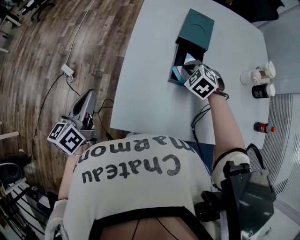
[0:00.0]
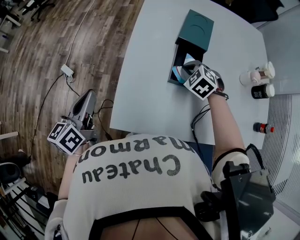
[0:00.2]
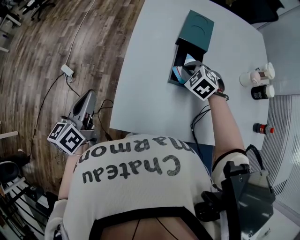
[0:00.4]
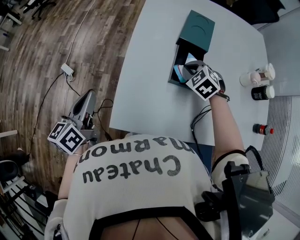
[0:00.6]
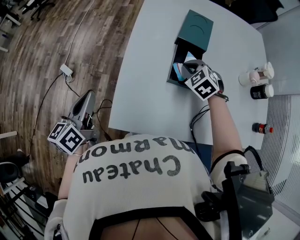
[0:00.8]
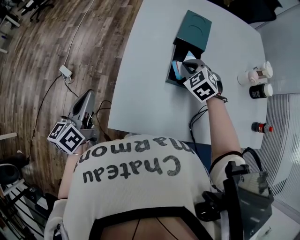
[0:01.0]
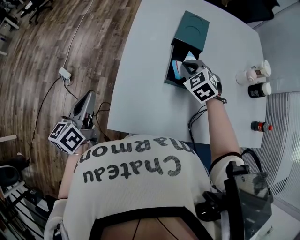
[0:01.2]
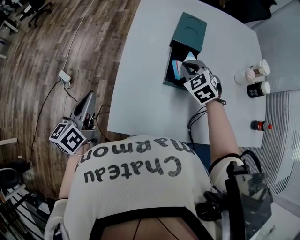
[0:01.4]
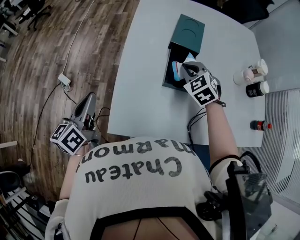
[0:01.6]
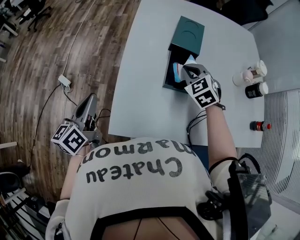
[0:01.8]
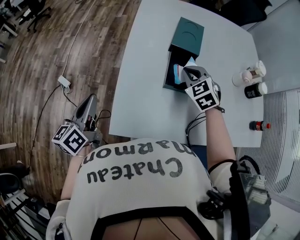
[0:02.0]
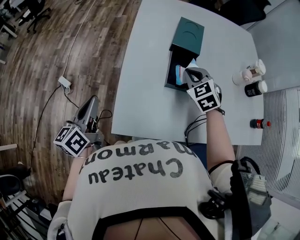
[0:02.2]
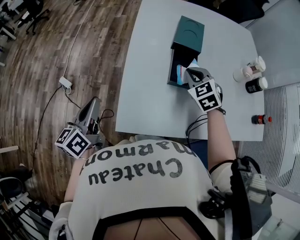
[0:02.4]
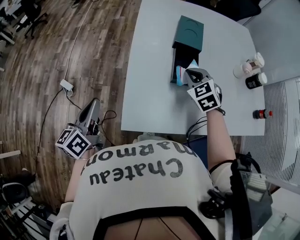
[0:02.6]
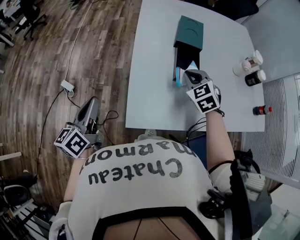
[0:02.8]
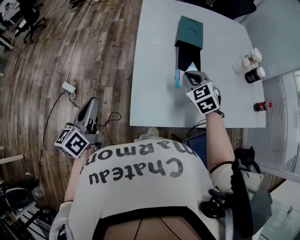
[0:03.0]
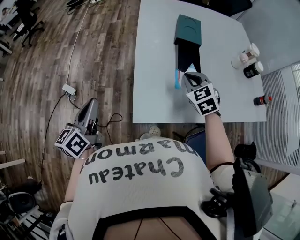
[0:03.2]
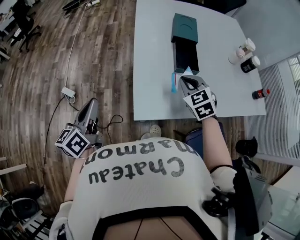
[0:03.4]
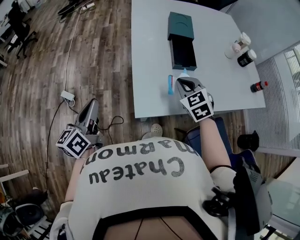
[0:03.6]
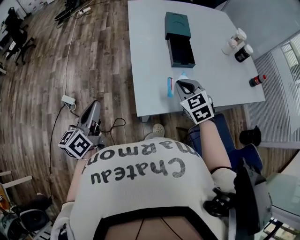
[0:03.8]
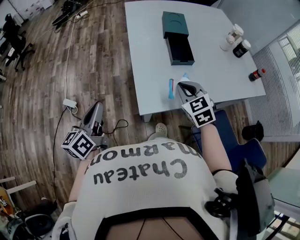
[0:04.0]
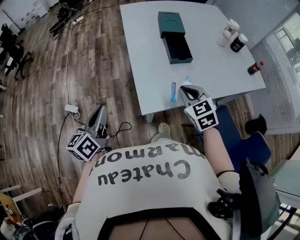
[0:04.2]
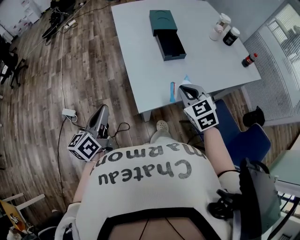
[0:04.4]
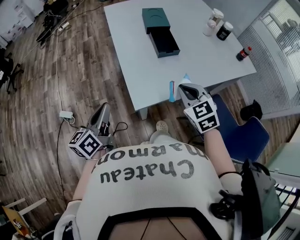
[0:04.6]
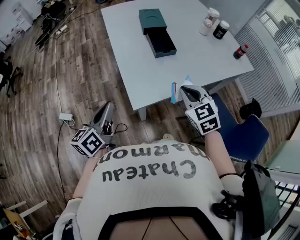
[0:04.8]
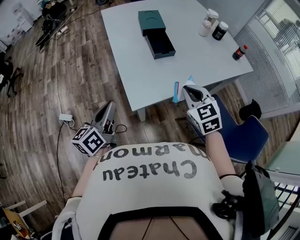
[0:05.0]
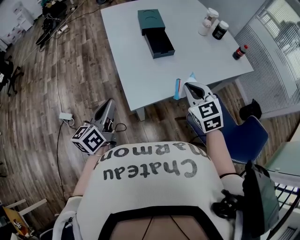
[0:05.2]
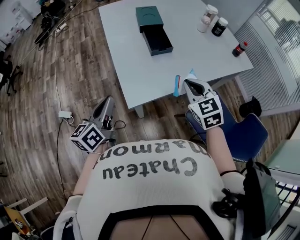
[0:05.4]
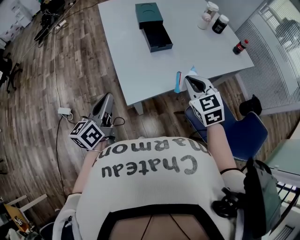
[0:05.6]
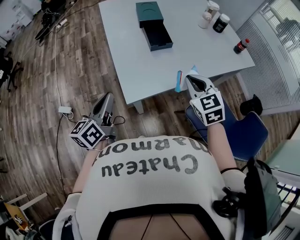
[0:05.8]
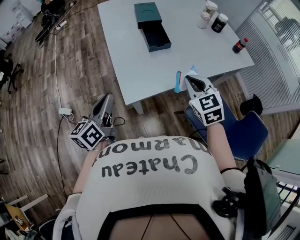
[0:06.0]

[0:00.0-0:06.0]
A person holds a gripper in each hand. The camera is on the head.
0.0 to 1.6 s: The right gripper travels upward by roughly 5 cm.
1.6 to 3.0 s: The right gripper goes approximately 10 cm backward and to the left; the left gripper travels to the left by some 10 cm.
3.0 to 4.4 s: The left gripper is displaced backward by some 5 cm, while the right gripper is displaced backward by some 20 cm, and rotates about 20 degrees.
4.4 to 6.0 s: Both grippers travel together to the right, roughly 10 cm.

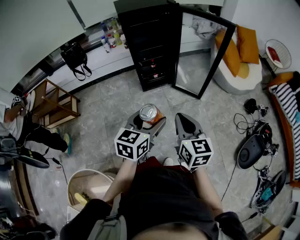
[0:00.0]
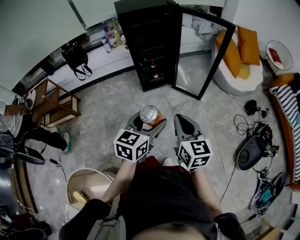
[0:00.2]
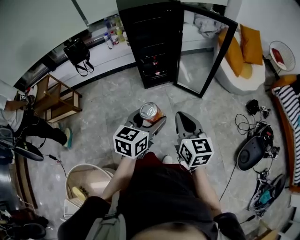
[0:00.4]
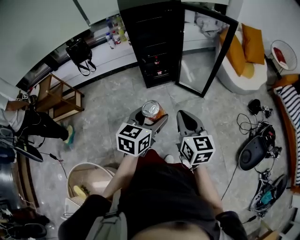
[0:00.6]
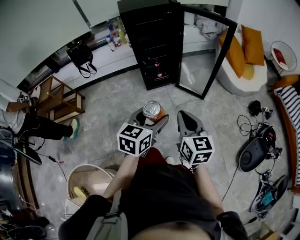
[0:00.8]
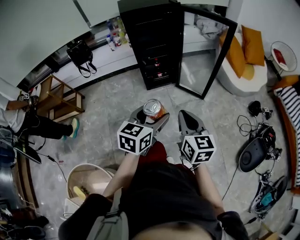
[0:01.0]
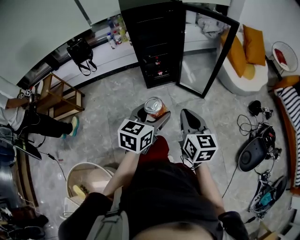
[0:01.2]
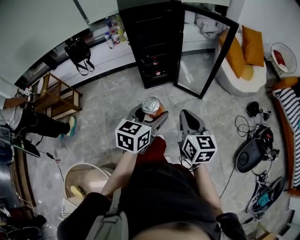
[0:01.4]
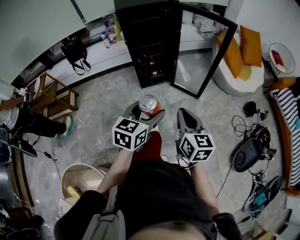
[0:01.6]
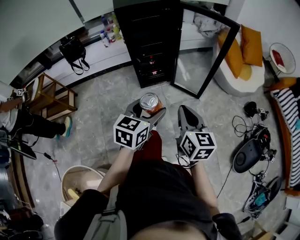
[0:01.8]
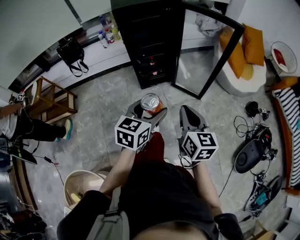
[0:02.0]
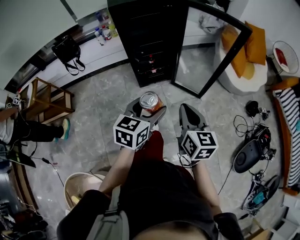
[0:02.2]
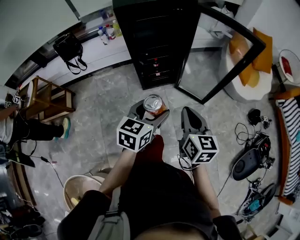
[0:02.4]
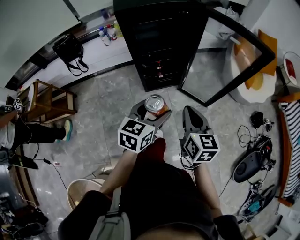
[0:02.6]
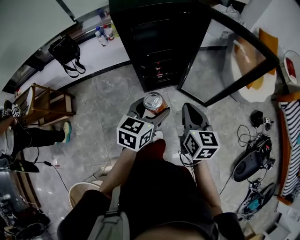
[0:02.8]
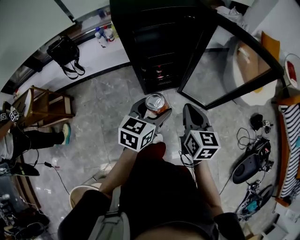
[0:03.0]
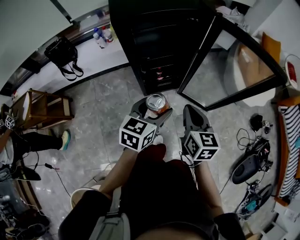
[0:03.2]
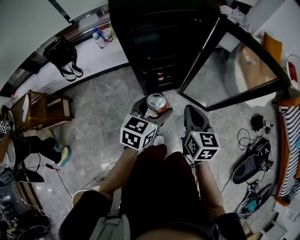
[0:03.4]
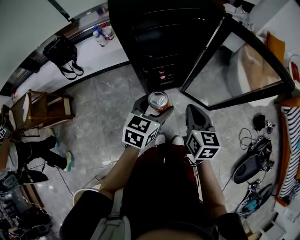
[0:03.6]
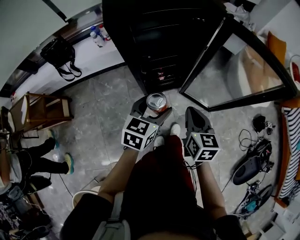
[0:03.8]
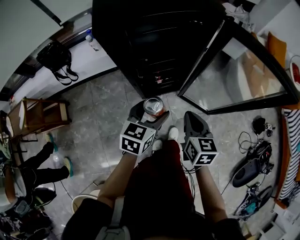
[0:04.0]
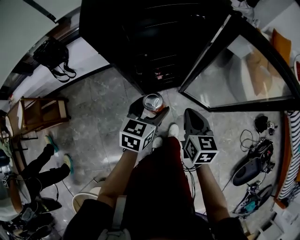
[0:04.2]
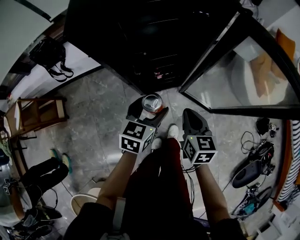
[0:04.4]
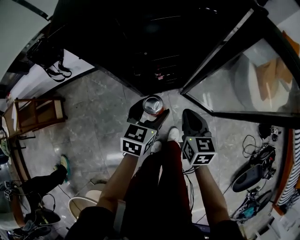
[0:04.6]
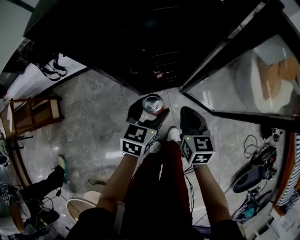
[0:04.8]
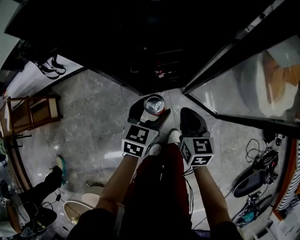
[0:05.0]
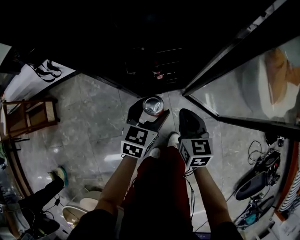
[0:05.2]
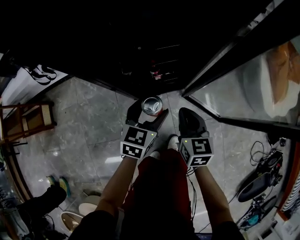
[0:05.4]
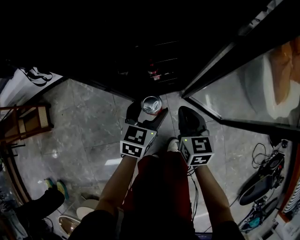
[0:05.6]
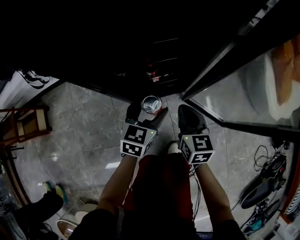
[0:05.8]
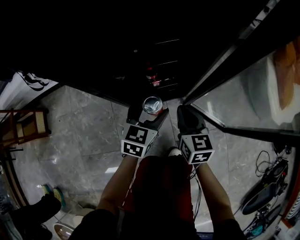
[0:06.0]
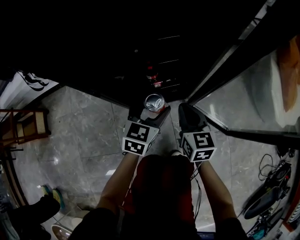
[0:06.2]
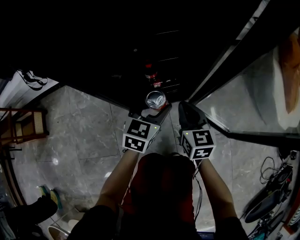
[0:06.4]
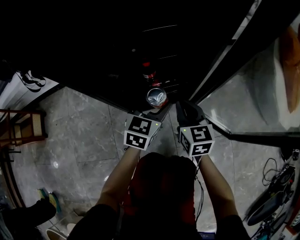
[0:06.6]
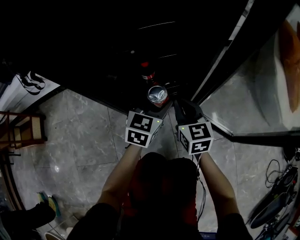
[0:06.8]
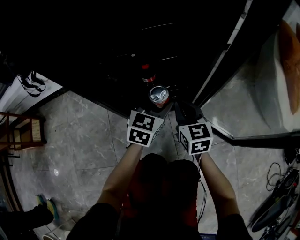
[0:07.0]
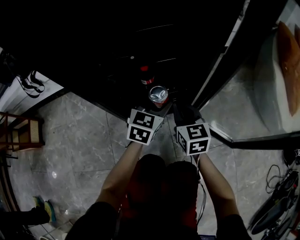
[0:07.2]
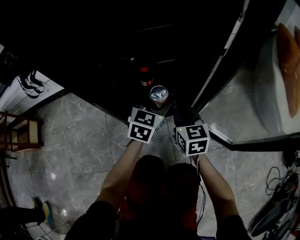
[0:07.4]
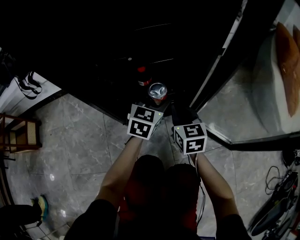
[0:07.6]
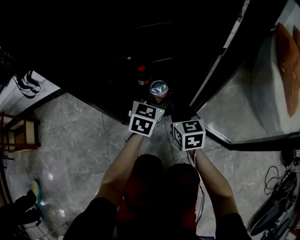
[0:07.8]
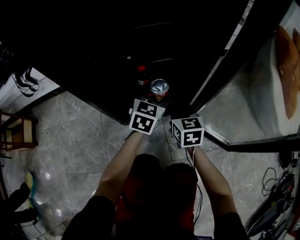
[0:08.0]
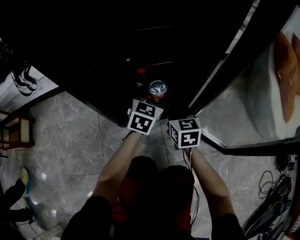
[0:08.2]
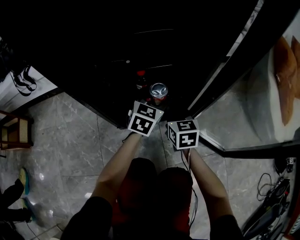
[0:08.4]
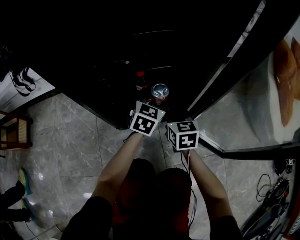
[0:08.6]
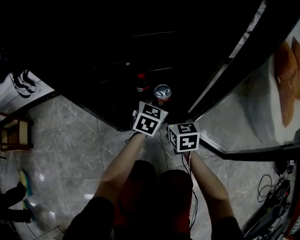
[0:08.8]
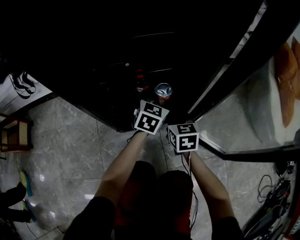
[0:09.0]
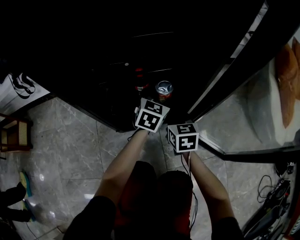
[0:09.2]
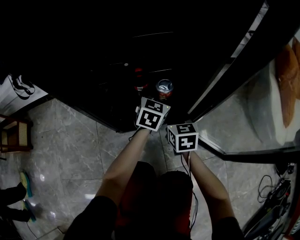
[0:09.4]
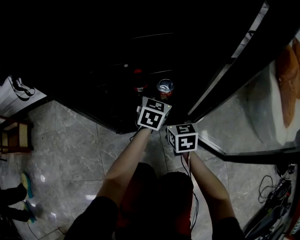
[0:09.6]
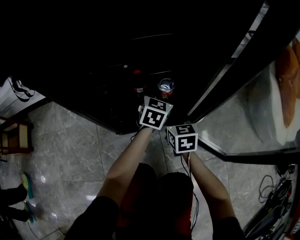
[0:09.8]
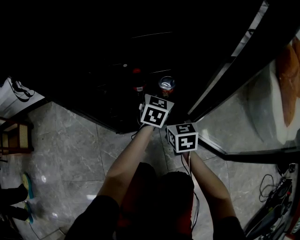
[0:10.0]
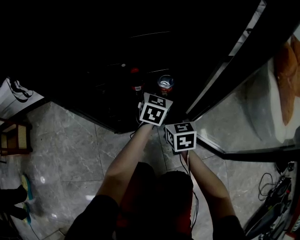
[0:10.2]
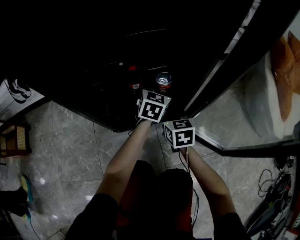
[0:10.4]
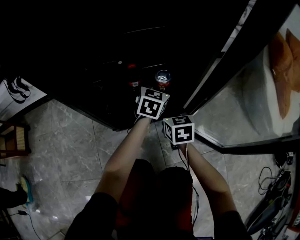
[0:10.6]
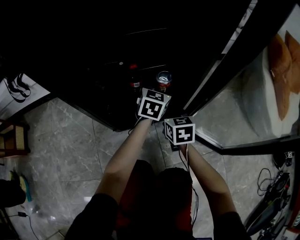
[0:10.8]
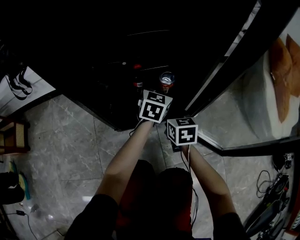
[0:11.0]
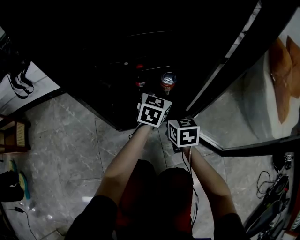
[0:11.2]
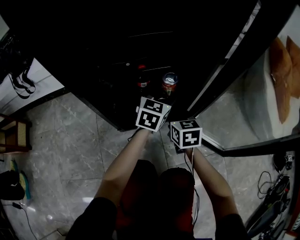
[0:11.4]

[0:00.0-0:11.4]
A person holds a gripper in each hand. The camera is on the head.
0.0 to 1.4 s: The right gripper ends up roughly 5 cm from where it was.
1.4 to 2.8 s: Both grippers move forward, approximately 30 cm.
2.8 to 4.2 s: Both grippers move forward and downward, roughly 20 cm.
4.2 to 5.6 s: The two grippers go approximately 25 cm downward.
5.6 to 7.2 s: Both grippers move downward and forward, approximately 15 cm.
7.2 to 8.6 s: The right gripper moves approximately 5 cm; the left gripper is displaced forward by some 5 cm.
8.6 to 10.0 s: The left gripper moves forward, some 5 cm.
10.0 to 11.4 s: The left gripper changes place by approximately 5 cm.

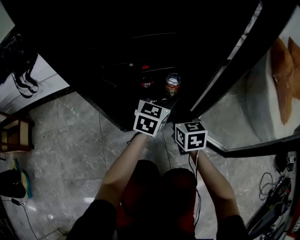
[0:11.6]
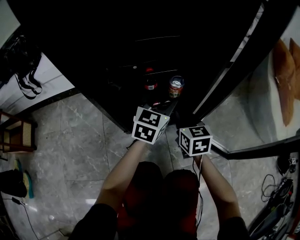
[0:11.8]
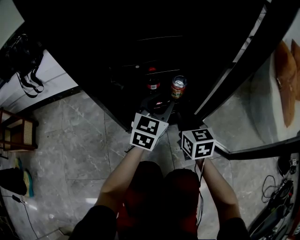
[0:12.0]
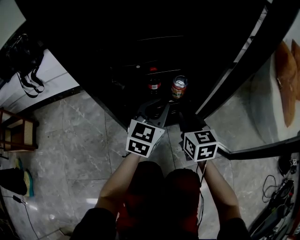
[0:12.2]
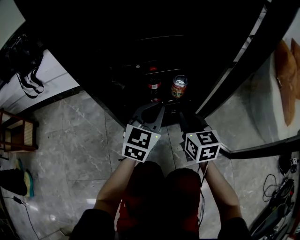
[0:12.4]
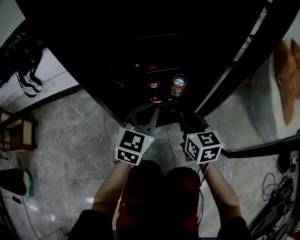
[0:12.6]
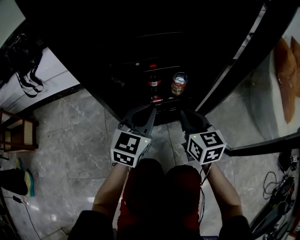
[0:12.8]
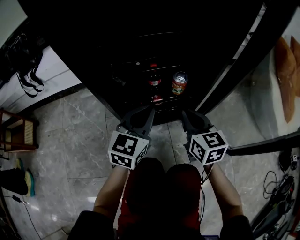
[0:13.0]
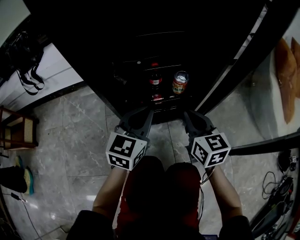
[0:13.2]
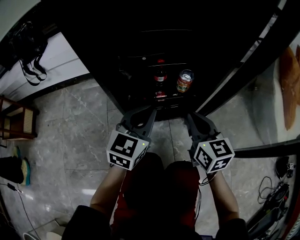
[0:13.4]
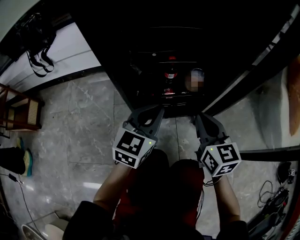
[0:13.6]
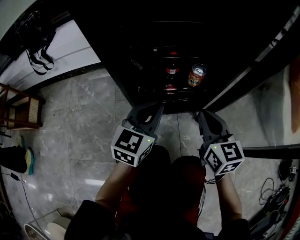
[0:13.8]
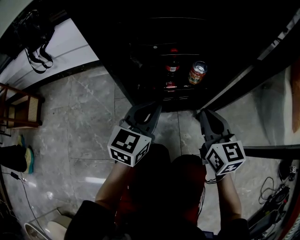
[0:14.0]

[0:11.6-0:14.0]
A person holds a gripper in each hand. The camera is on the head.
11.6 to 12.8 s: The left gripper goes about 10 cm backward and to the left, and closes its fingers, while the right gripper is displaced upward by approximately 5 cm.
12.8 to 14.0 s: The grippers stay close to where they were, moving slightly.

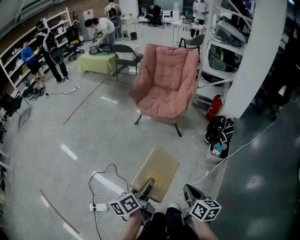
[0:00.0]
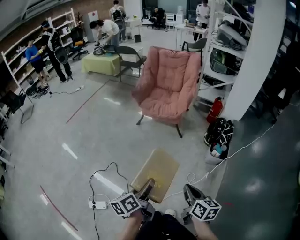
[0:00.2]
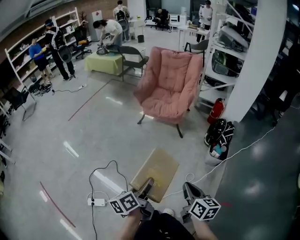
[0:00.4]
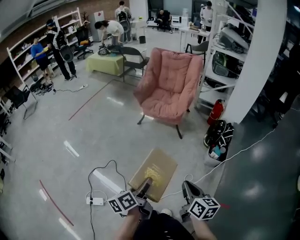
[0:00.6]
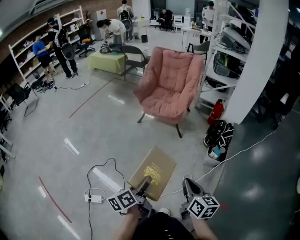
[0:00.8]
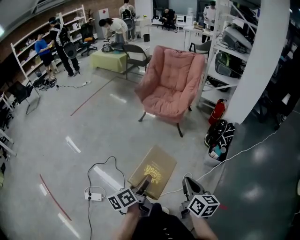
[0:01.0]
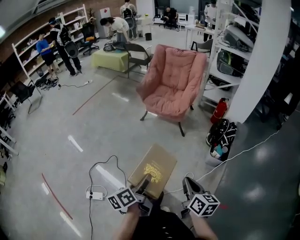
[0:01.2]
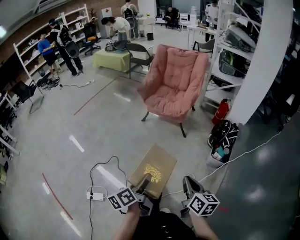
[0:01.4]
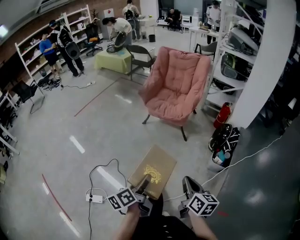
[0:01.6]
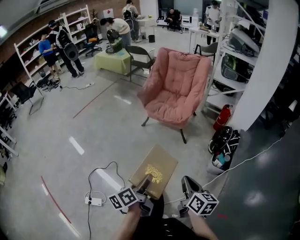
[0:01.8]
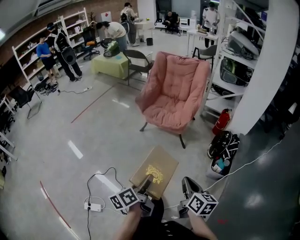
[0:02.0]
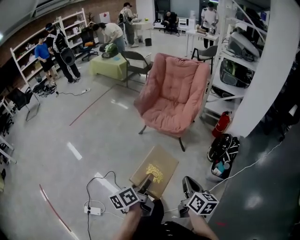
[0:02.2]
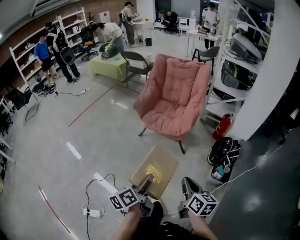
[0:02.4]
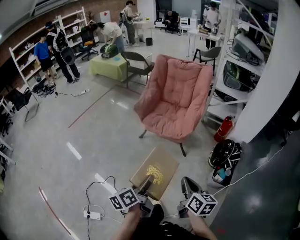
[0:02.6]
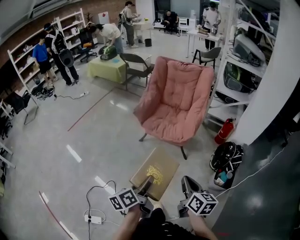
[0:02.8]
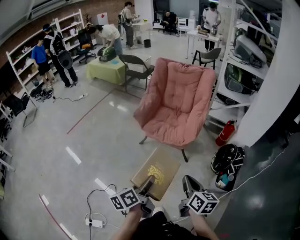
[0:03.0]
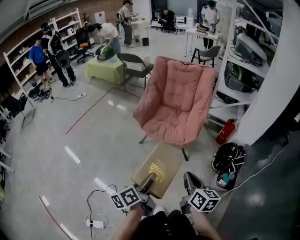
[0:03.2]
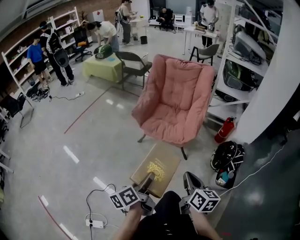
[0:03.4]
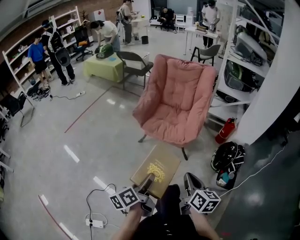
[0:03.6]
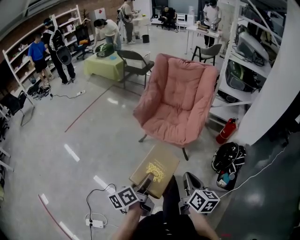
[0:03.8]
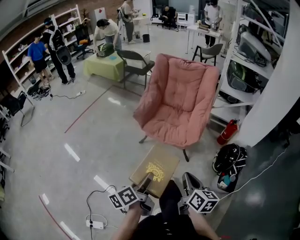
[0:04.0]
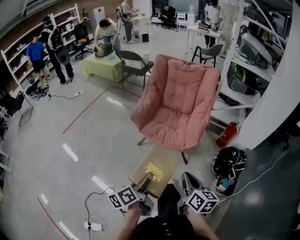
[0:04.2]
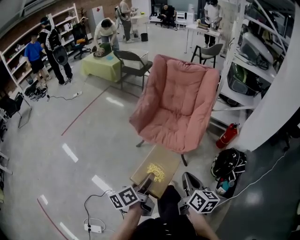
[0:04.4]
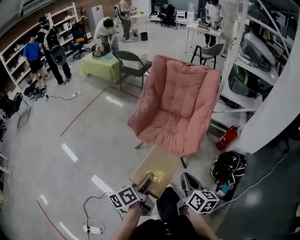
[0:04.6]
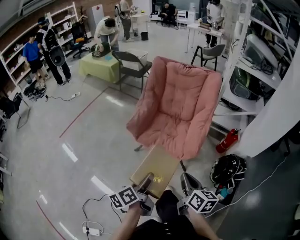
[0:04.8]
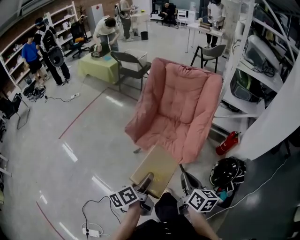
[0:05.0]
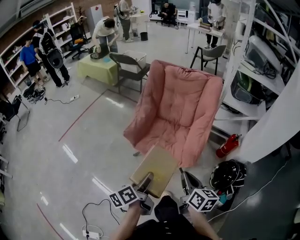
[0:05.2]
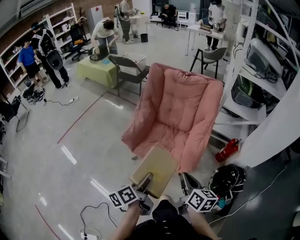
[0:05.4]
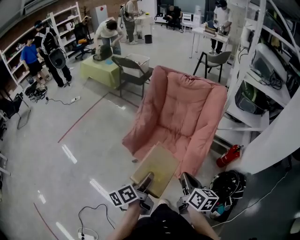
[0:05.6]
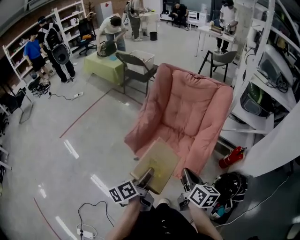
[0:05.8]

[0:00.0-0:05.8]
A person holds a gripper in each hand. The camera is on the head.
0.0 to 1.4 s: The right gripper moves to the right, about 5 cm, while the left gripper shifts by some 5 cm.
1.4 to 2.8 s: Both grippers travel together forward, approximately 25 cm.
2.8 to 4.4 s: The two grippers go approximately 15 cm forward.
4.4 to 5.8 s: Both grippers move forward, roughly 25 cm.
